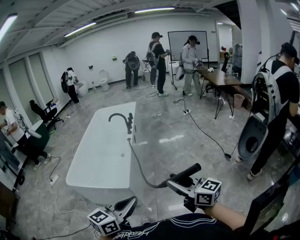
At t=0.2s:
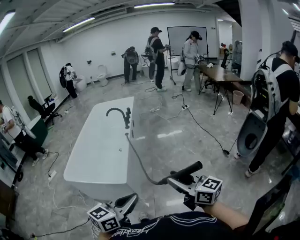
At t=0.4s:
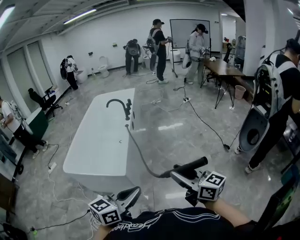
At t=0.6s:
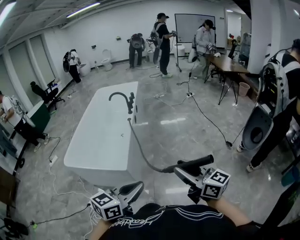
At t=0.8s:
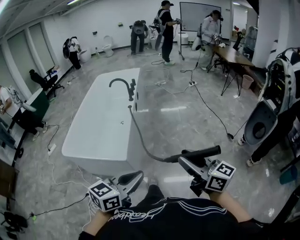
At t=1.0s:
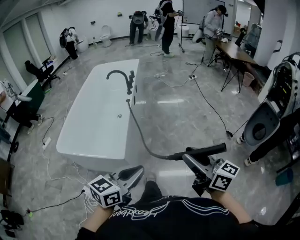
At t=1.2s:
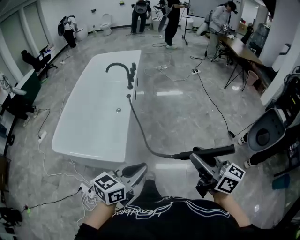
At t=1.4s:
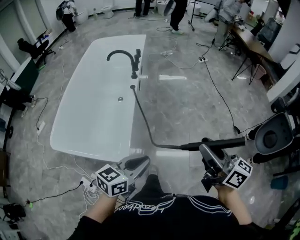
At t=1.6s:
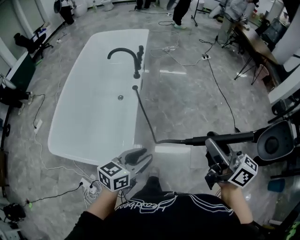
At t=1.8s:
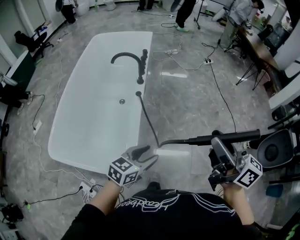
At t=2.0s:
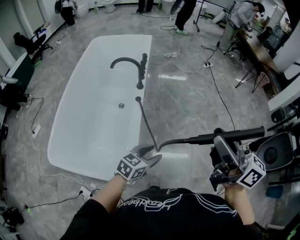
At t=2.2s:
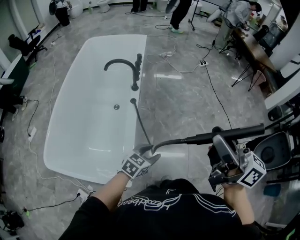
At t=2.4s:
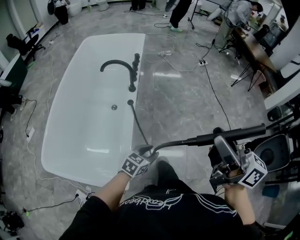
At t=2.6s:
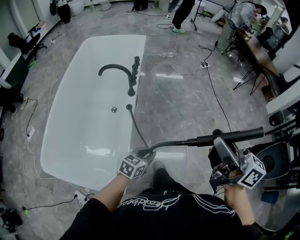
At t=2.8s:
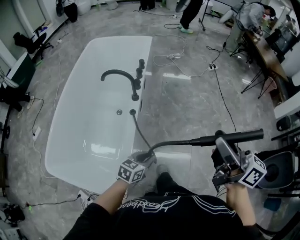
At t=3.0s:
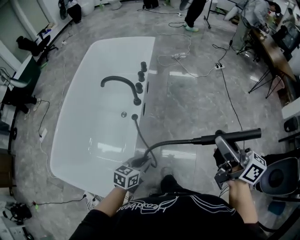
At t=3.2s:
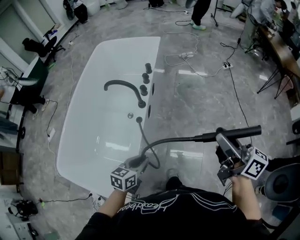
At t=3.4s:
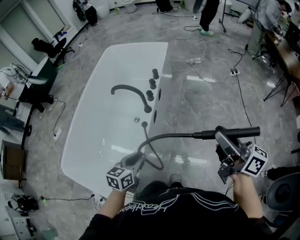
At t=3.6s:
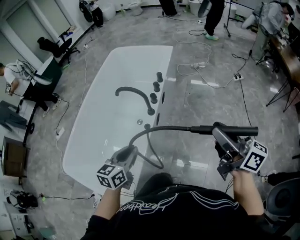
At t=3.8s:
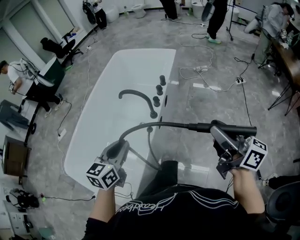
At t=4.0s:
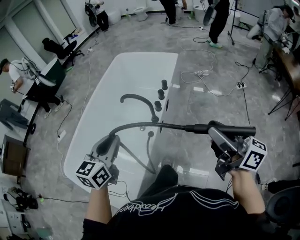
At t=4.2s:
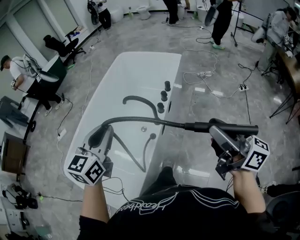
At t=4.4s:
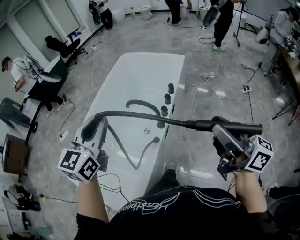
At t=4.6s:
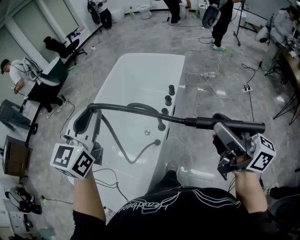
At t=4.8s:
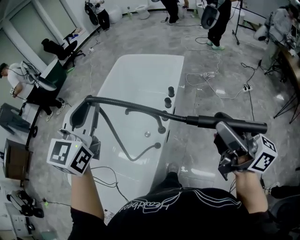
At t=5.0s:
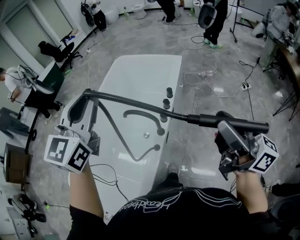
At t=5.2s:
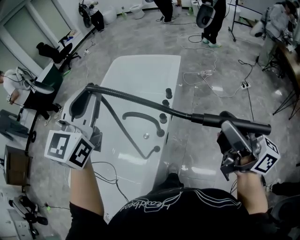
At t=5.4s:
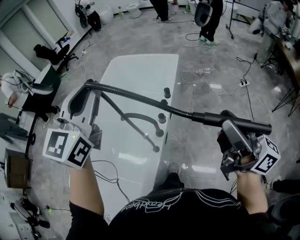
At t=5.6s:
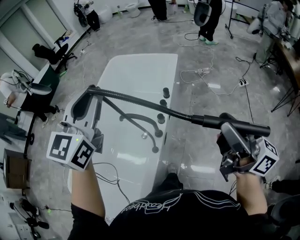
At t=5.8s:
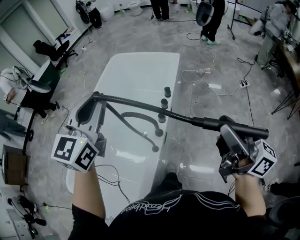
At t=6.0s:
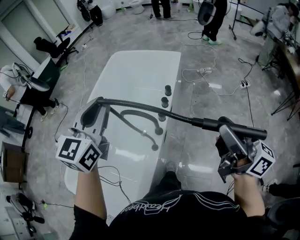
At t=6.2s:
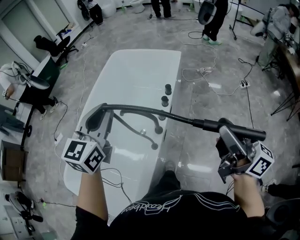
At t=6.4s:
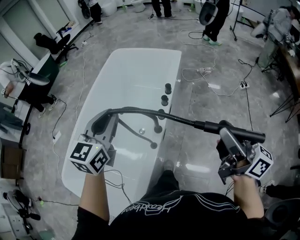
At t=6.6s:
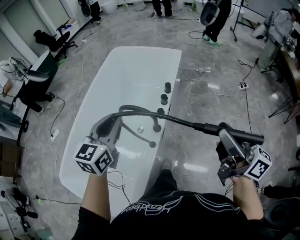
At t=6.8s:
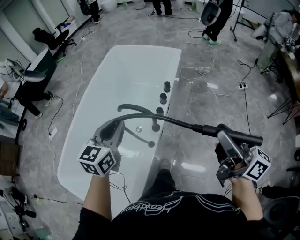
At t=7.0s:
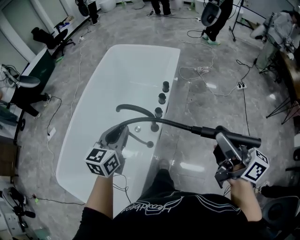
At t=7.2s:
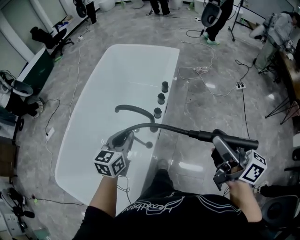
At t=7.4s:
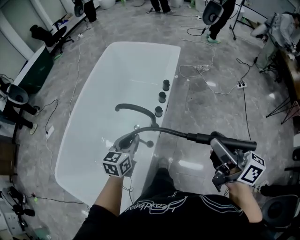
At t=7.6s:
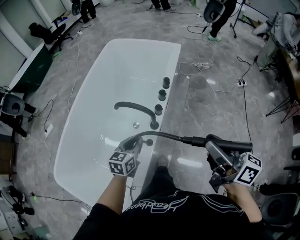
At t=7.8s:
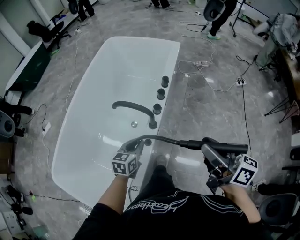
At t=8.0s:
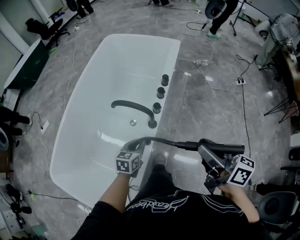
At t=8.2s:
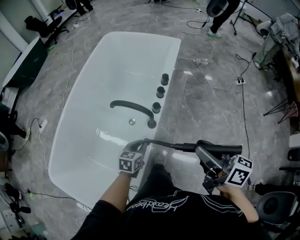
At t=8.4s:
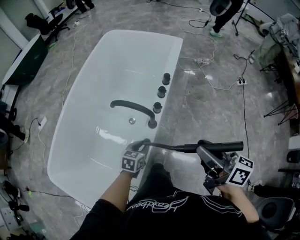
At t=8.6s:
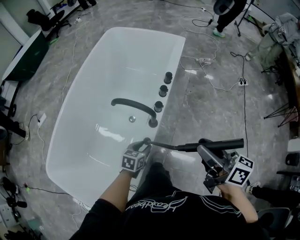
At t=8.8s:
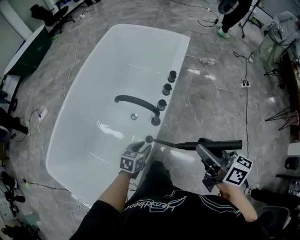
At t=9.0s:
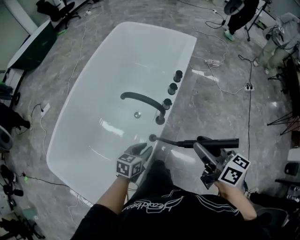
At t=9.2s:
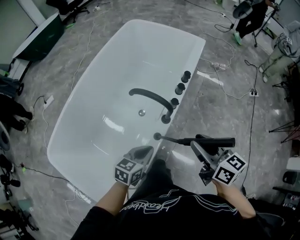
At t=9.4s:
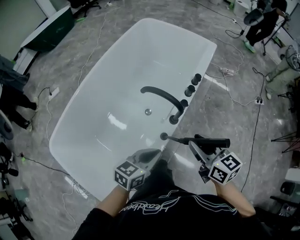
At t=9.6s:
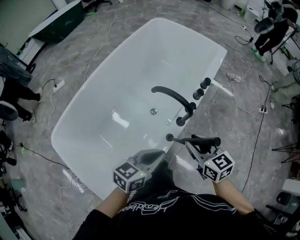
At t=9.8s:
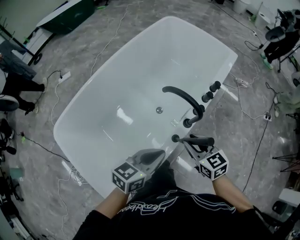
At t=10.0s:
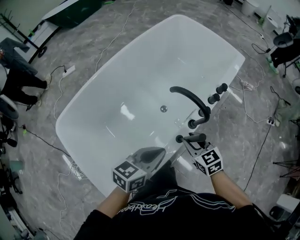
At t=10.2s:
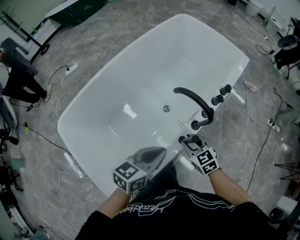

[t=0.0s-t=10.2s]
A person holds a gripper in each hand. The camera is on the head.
t=0.0s to t=1.4s: The right gripper is displaced forward by approximately 20 cm; the left gripper heads forward and downward, covering some 30 cm.
t=1.4s to t=3.0s: The right gripper moves forward, roughly 35 cm, while the left gripper goes about 35 cm forward and downward, and opens, then closes again.
t=3.0s to t=4.4s: The right gripper changes place by roughly 20 cm, and turns by approximately 20 degrees. Meanwhile the left gripper travels upward by some 35 cm, and swivels about 50 degrees.
t=4.4s to t=5.8s: The left gripper shifts approximately 15 cm forward and to the right; the right gripper goes roughly 5 cm forward.
t=5.8s to t=7.2s: The right gripper shifts some 5 cm downward; the left gripper shifts roughly 25 cm downward, and swivels roughly 30 degrees.
t=7.2s to t=8.8s: The right gripper shifts about 15 cm downward and to the left. Meanwhile the left gripper travels downward by approximately 20 cm, and swivels roughly 30 degrees.
t=8.8s to t=10.2s: The right gripper is displaced downward and to the left by roughly 30 cm, and points its fingers about 30 degrees further downward. The left gripper travels upward and to the left by roughly 15 cm, turns by roughly 30 degrees, and closes its fingers.

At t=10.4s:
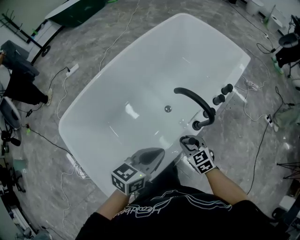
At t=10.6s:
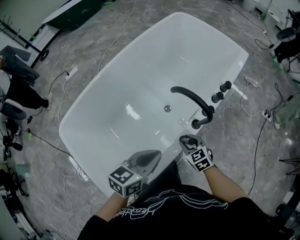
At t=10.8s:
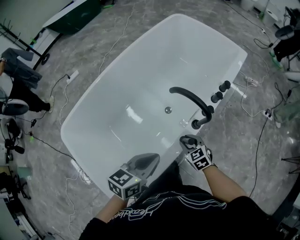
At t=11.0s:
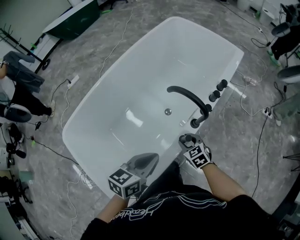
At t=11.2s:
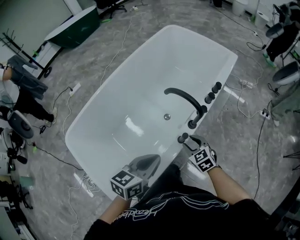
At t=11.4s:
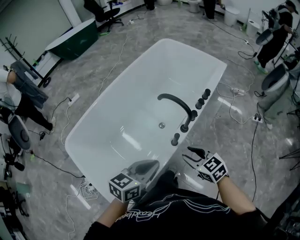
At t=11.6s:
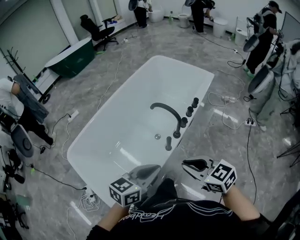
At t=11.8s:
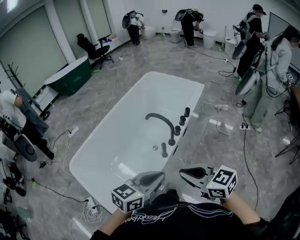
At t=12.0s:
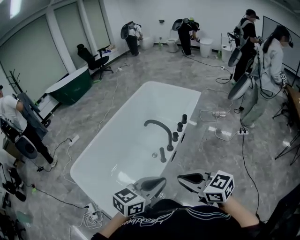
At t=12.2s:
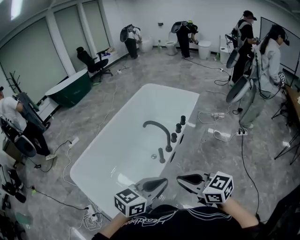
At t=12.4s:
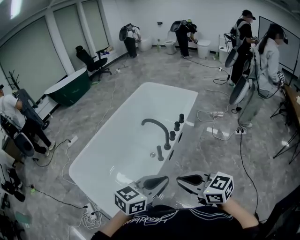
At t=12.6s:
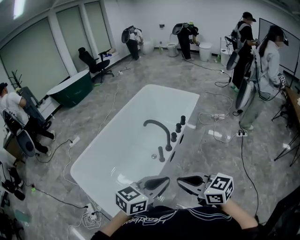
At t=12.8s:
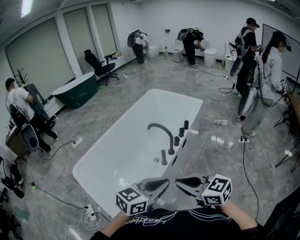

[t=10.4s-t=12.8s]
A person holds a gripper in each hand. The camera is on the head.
t=10.4s to t=11.6s: The right gripper is displaced upward and backward by some 30 cm, turns by about 20 degrees, and closes its fingers, while the left gripper shifts roughly 15 cm backward, upward and to the right.
t=11.6s to t=12.8s: The left gripper is displaced backward, upward and to the right by approximately 15 cm. Meanwhile the right gripper moves backward and upward, approximately 15 cm.

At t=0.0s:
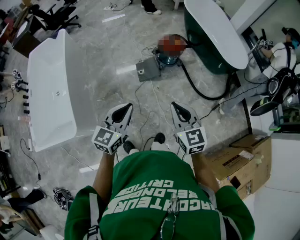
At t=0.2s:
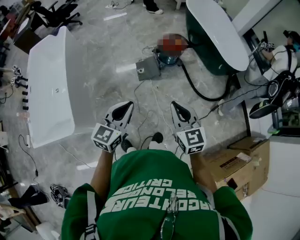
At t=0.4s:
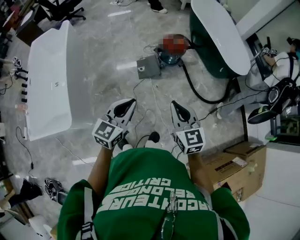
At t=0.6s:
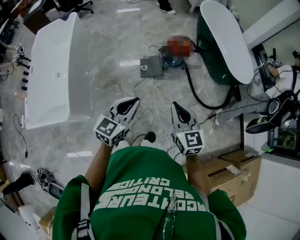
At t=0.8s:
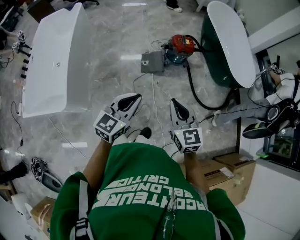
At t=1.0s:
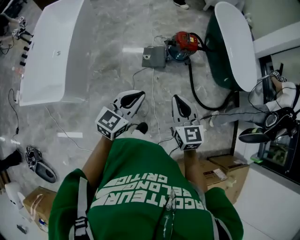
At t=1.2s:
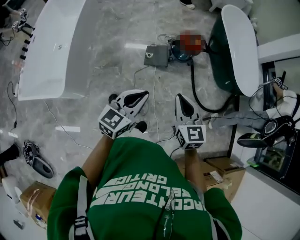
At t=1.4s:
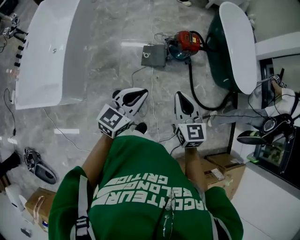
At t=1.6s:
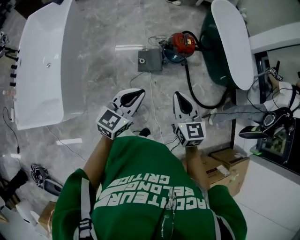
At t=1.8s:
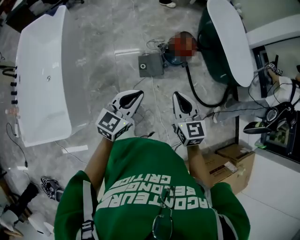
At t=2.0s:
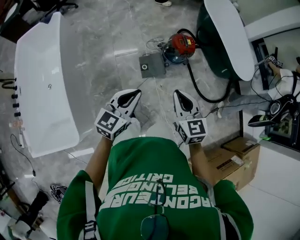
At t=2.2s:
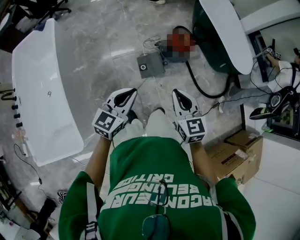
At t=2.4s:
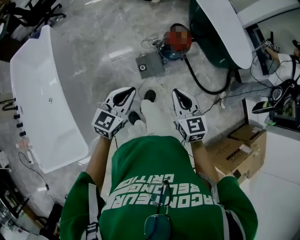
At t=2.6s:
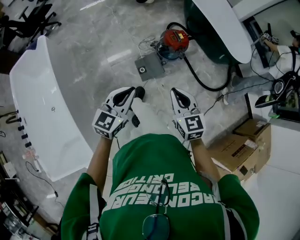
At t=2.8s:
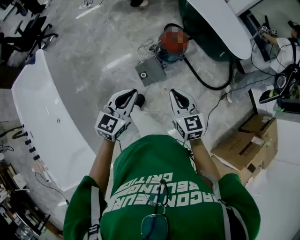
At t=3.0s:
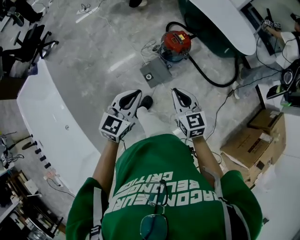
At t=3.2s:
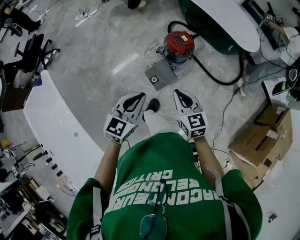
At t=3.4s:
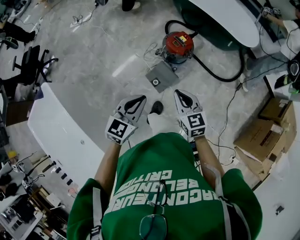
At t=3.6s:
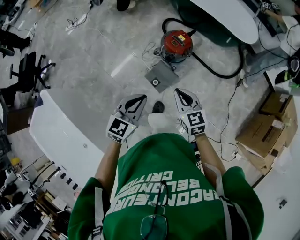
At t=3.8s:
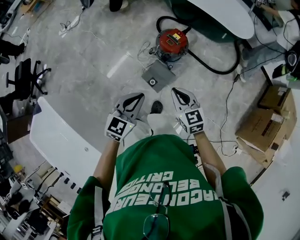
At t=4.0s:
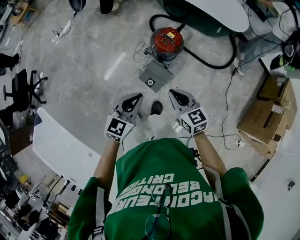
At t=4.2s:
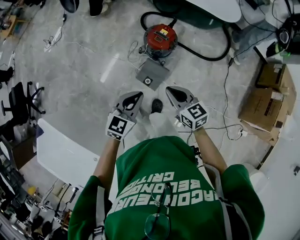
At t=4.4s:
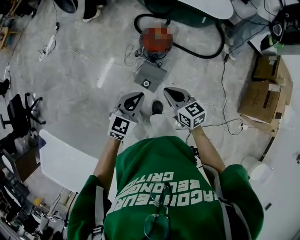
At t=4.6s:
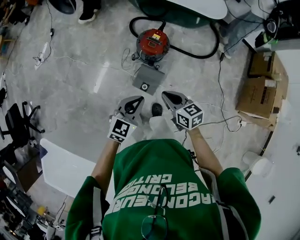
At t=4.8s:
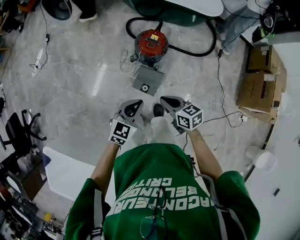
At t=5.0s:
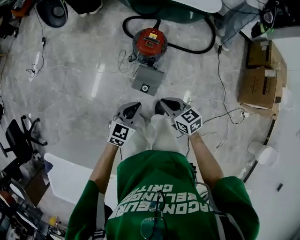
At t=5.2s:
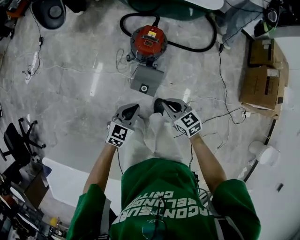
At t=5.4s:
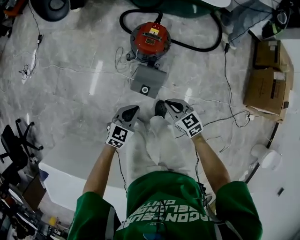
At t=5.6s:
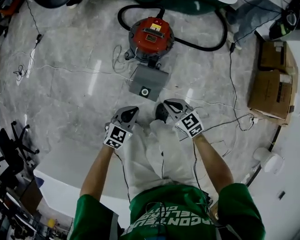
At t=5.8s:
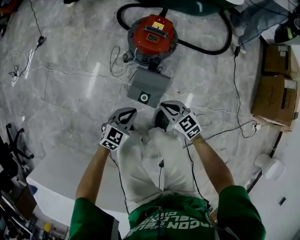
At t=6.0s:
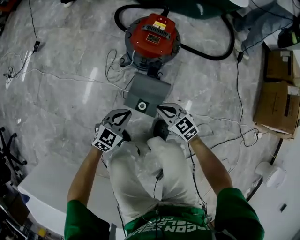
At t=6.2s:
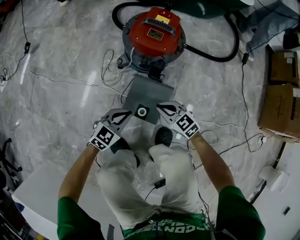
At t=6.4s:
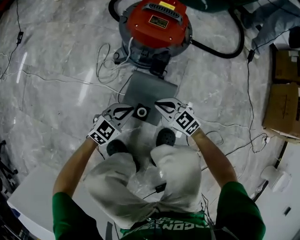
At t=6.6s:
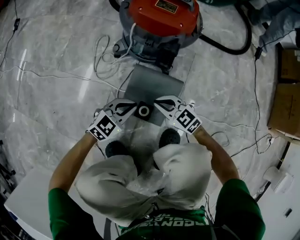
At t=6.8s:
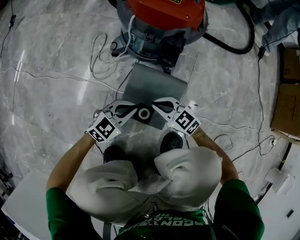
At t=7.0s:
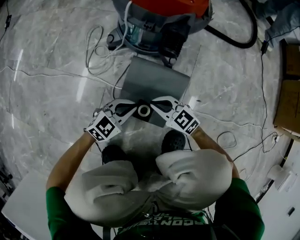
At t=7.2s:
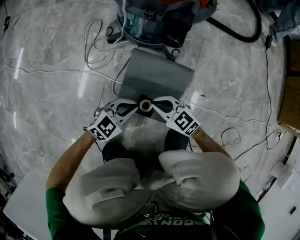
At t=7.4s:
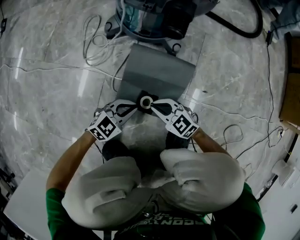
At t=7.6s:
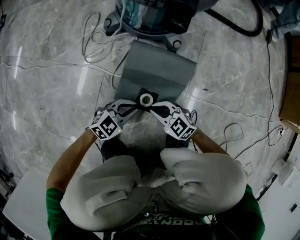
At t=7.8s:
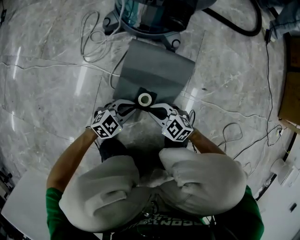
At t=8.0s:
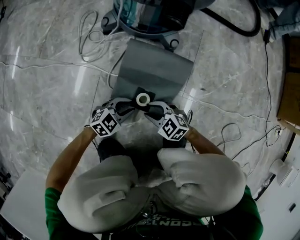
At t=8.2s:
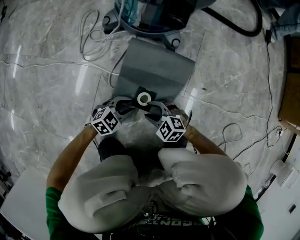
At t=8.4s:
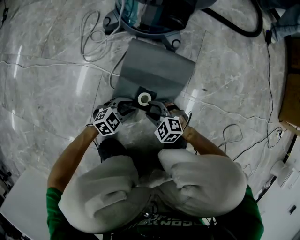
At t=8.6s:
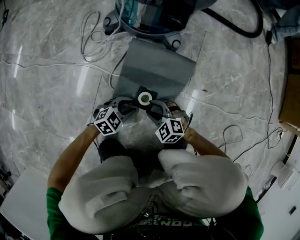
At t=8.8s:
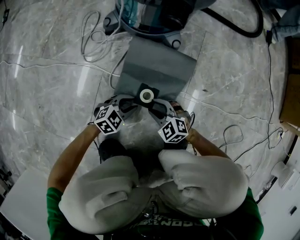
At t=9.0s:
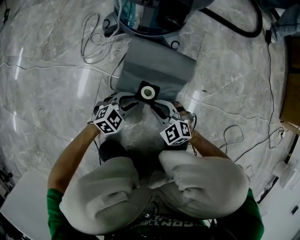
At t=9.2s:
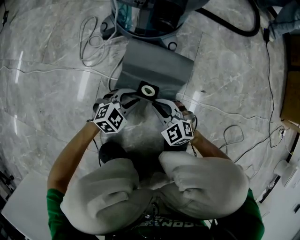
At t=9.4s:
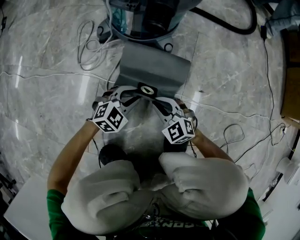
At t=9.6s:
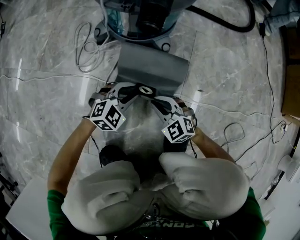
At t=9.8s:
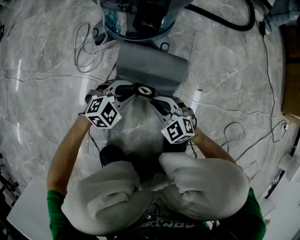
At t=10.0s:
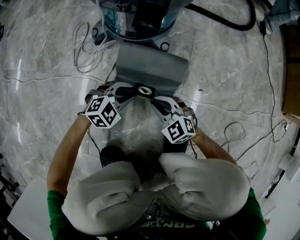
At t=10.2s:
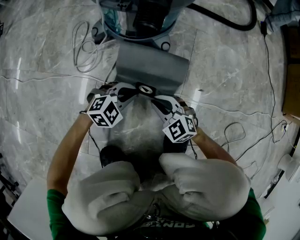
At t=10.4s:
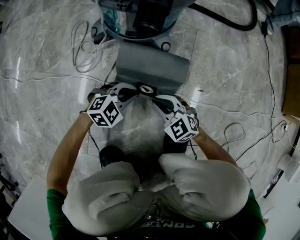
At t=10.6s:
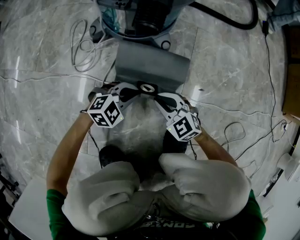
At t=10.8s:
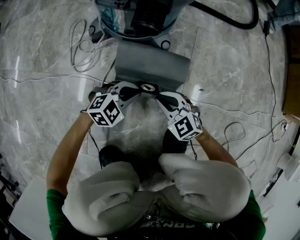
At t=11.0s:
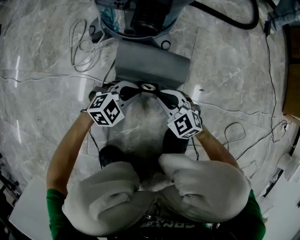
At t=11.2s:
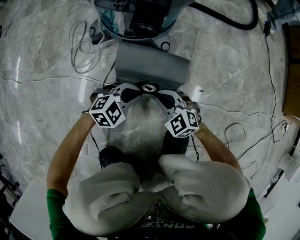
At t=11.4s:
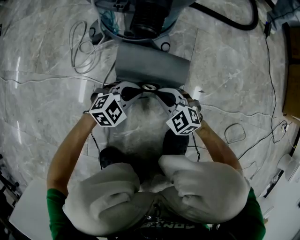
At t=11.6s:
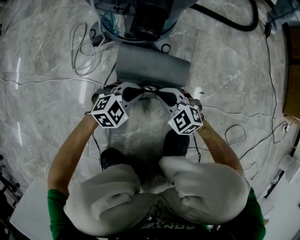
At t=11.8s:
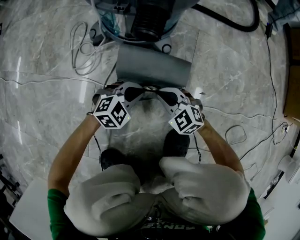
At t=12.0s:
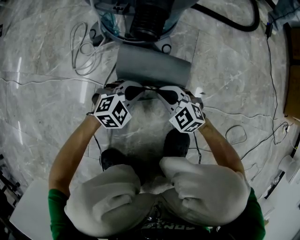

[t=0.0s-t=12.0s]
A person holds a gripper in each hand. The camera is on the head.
t=0.0s to t=1.6s: Both grippers move forward, some 15 cm.
t=1.6s to t=3.0s: The left gripper goes roughly 25 cm forward and to the left, and turns by roughly 20 degrees. Meanwhile the right gripper travels forward, to the left and downward by some 25 cm, and turns by roughly 20 degrees.
t=3.0s to t=4.4s: The right gripper travels forward and to the left by roughly 20 cm, and rotates approximately 20 degrees. Meanwhile the left gripper shifts about 20 cm forward, and turns by about 30 degrees.
t=4.4s to t=6.0s: The two grippers go about 50 cm downward. The left gripper rotates roughly 20 degrees.
t=6.0s to t=7.6s: The grippers both shift downward by approximately 40 cm. The left gripper rotates about 20 degrees.
t=7.6s to t=9.0s: The right gripper swivels approximately 20 degrees, and opens; the left gripper opens up.
t=9.0s to t=10.4s: The right gripper shifts by roughly 5 cm. Meanwhile the left gripper moves forward, some 5 cm.
t=10.4s to t=12.0s: The grippers move only a little.
